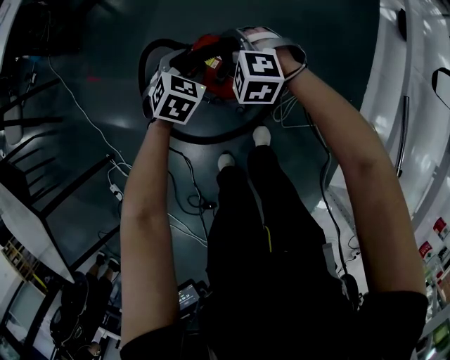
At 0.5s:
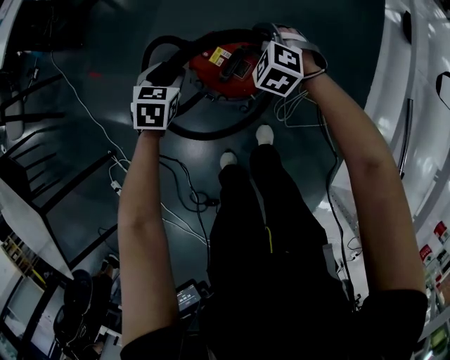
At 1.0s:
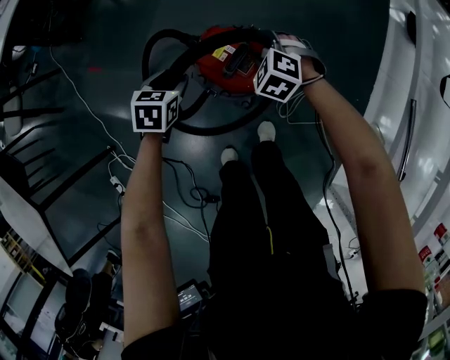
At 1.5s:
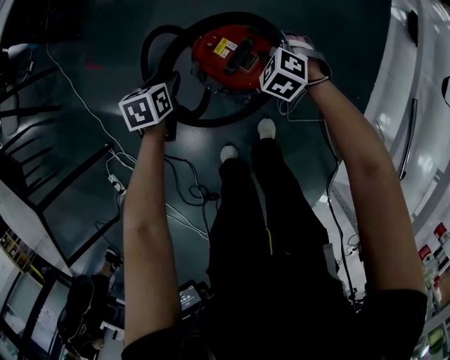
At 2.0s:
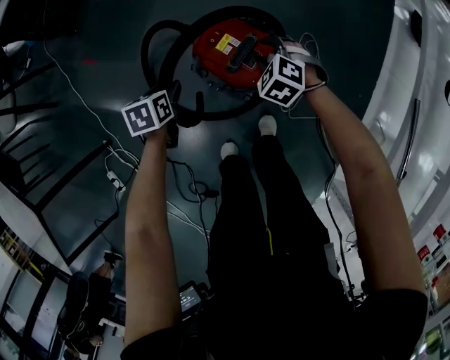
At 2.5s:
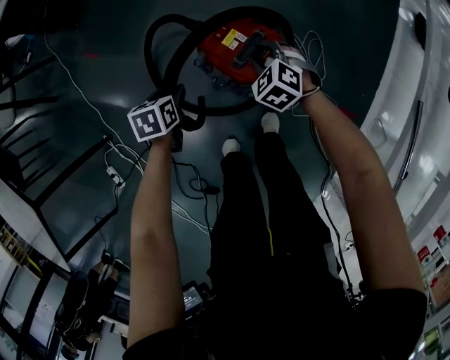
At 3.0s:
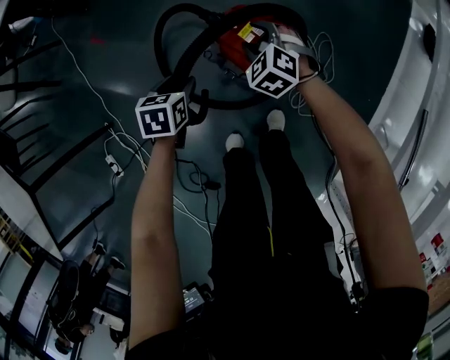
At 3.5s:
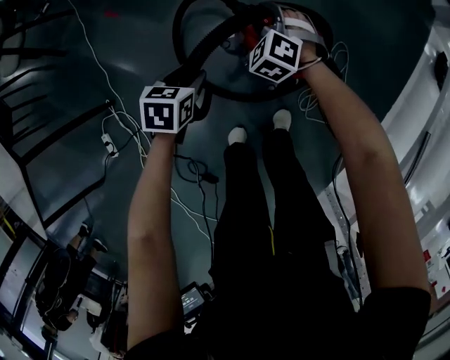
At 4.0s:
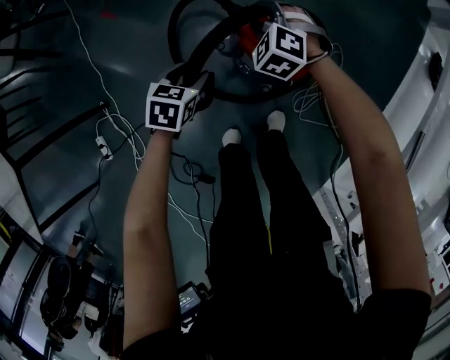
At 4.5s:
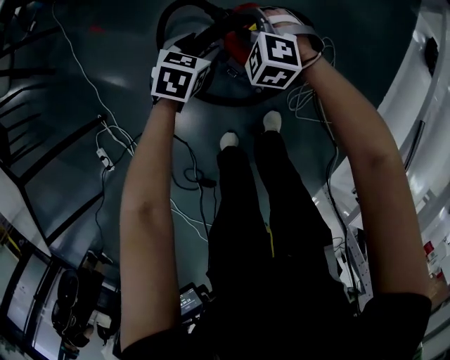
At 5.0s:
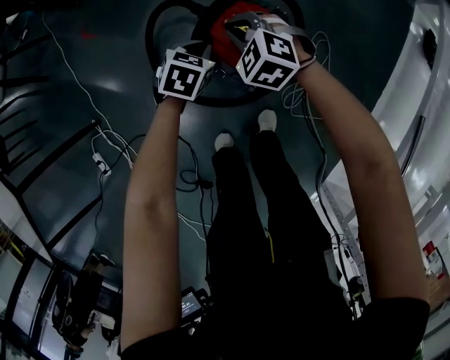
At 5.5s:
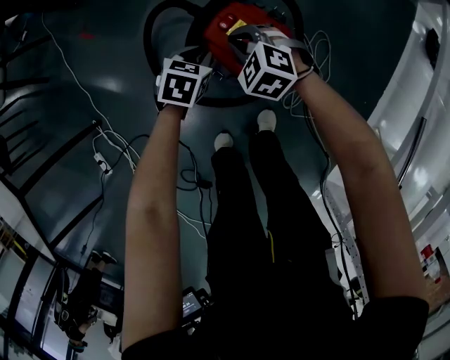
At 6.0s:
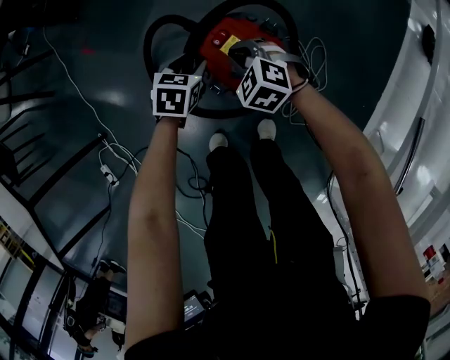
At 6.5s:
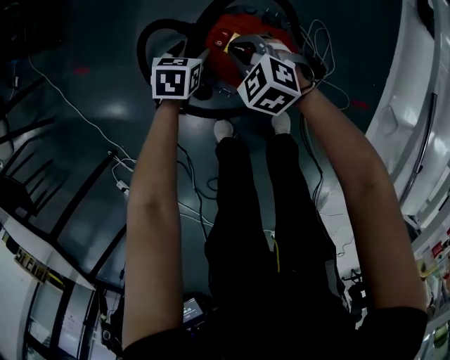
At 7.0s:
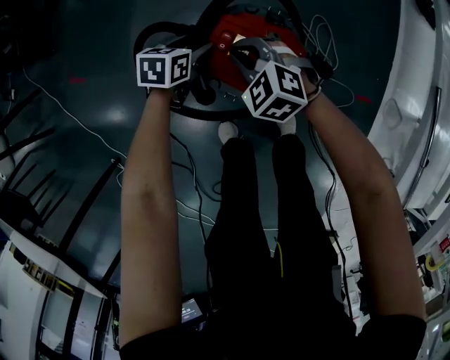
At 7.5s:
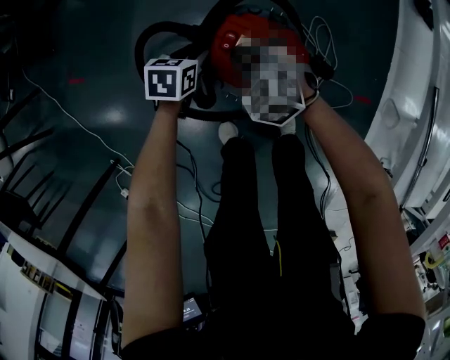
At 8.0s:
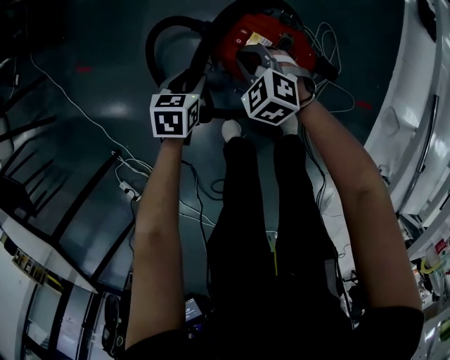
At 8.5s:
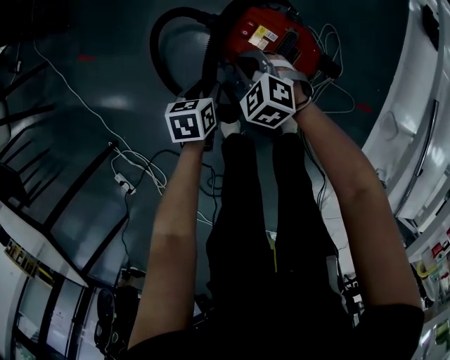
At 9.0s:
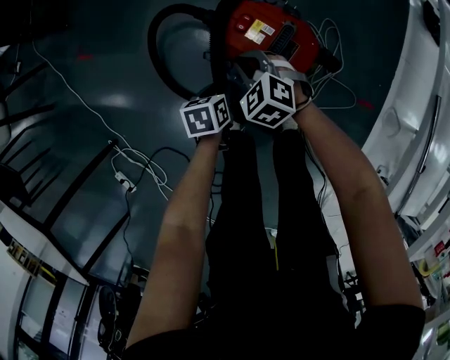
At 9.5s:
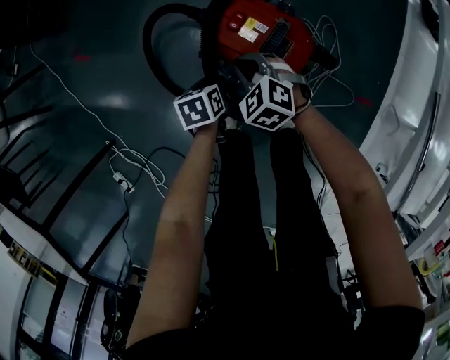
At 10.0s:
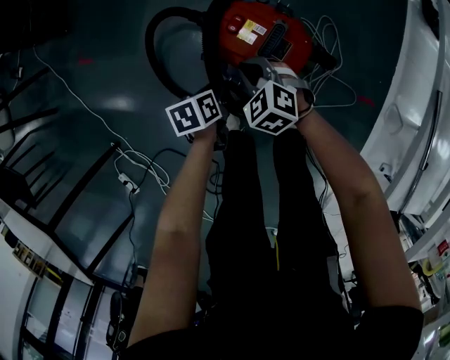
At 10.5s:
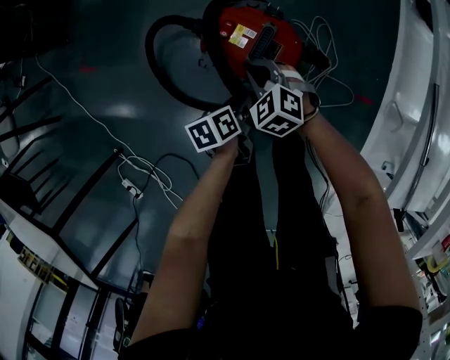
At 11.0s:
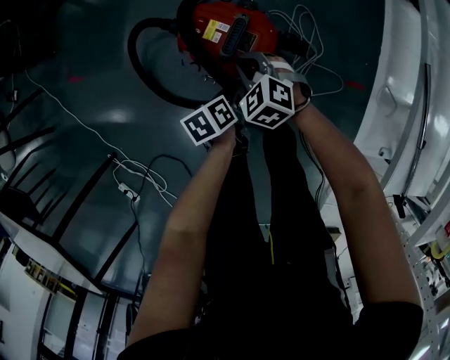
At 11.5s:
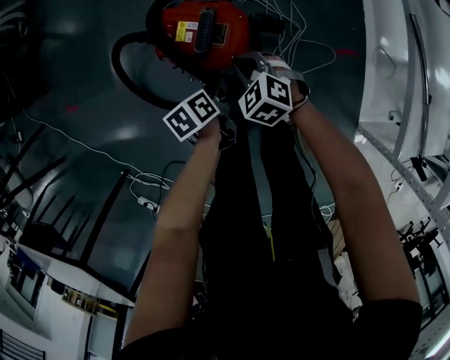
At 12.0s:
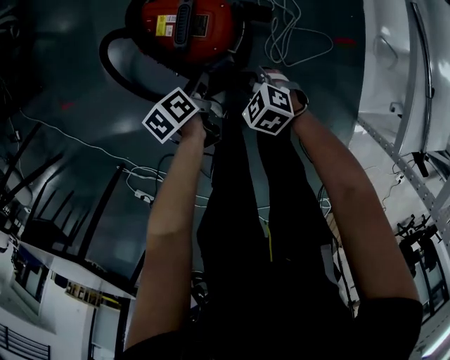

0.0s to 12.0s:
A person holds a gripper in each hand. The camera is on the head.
0.0s to 2.0s: The right gripper travels downward by approximately 10 cm; the left gripper shifts some 20 cm to the left and downward, and twists about 50 degrees counterclockwise, seen from behind.
2.0s to 4.0s: The right gripper goes approximately 15 cm to the left. The left gripper changes place by some 5 cm.
4.0s to 6.0s: The right gripper shifts approximately 5 cm to the right, and closes up, while the left gripper is displaced to the right and forward by approximately 15 cm, and closes, then reopens.
6.0s to 8.0s: Both grippers travel together to the left, about 5 cm. The left gripper goes forward and returns, about 10 cm each way.
8.0s to 10.0s: The left gripper moves backward and to the right, approximately 10 cm, and turns by roughly 30 degrees, while the right gripper goes some 5 cm backward.
10.0s to 12.0s: The left gripper heads to the right, covering about 10 cm. The right gripper goes approximately 20 cm to the right and backward, and changes its angle by roughly 20 degrees.

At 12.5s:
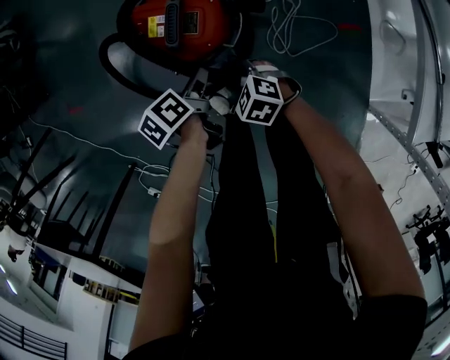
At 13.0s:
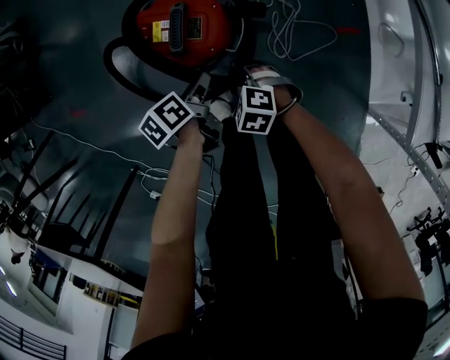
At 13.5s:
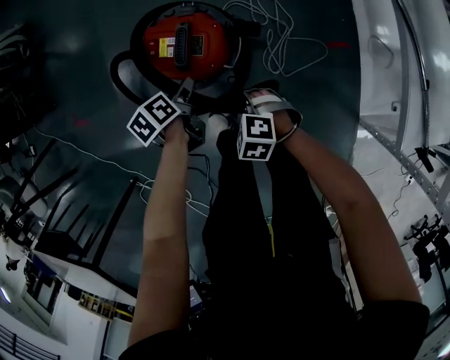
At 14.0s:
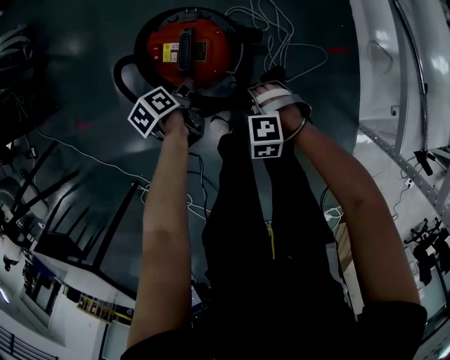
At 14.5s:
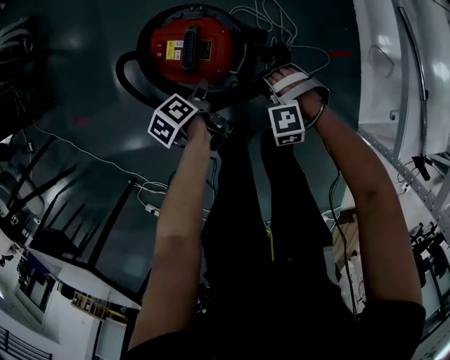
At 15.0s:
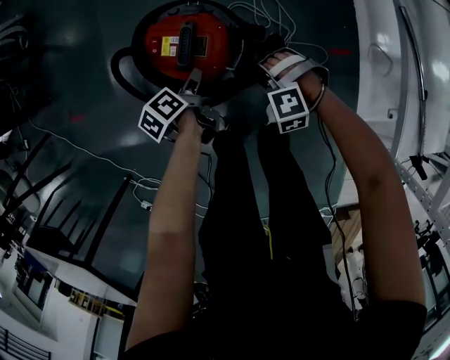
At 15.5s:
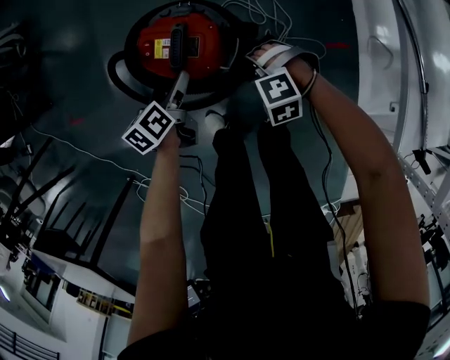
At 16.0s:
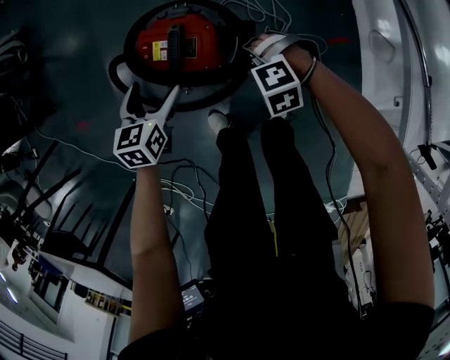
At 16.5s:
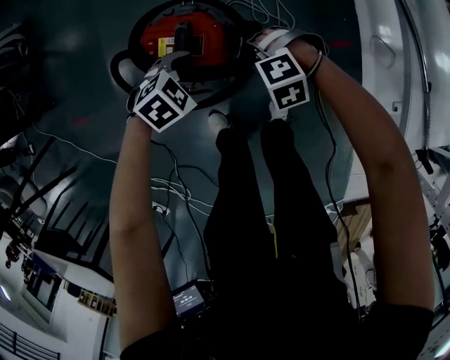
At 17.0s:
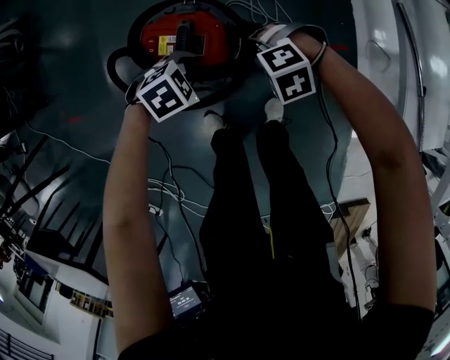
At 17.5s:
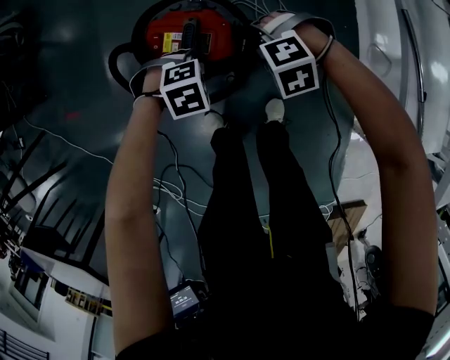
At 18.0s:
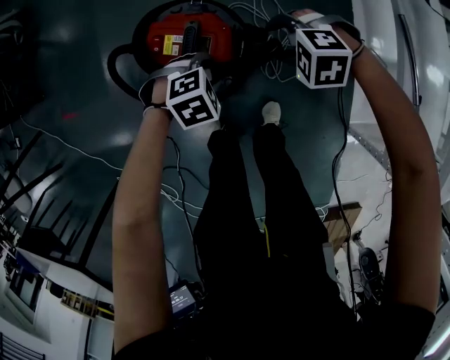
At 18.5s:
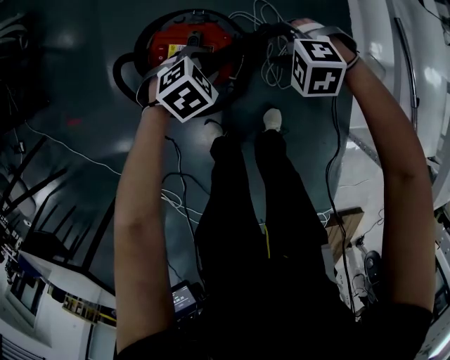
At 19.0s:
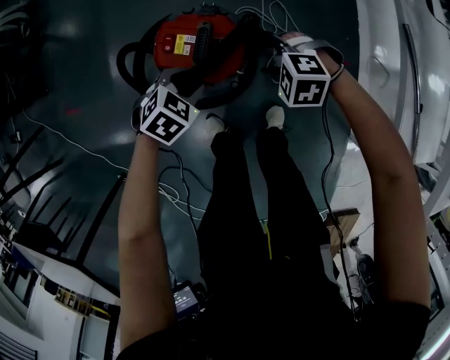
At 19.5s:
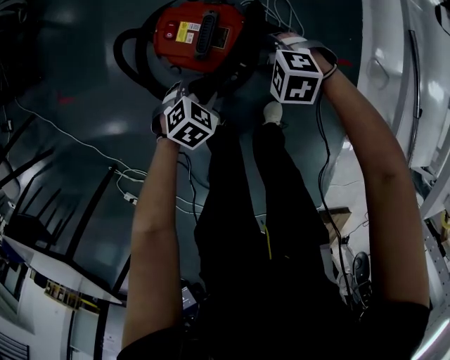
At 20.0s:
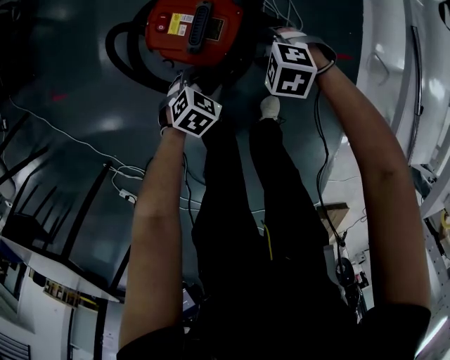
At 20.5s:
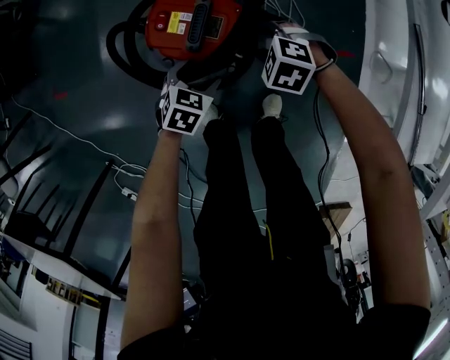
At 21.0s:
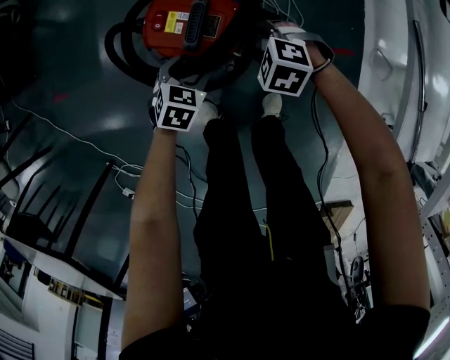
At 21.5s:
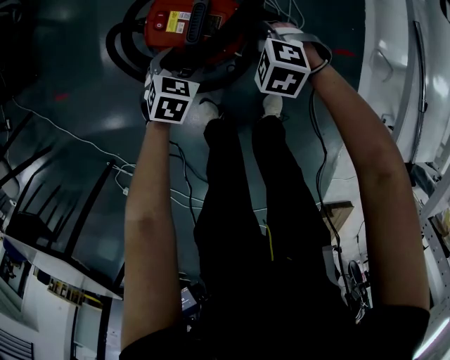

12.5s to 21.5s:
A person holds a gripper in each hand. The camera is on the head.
12.5s to 14.5s: The right gripper heads to the right and upward, covering about 10 cm, and twists about 40 degrees counterclockwise, seen from behind.
14.5s to 17.0s: The left gripper ends up roughly 5 cm from where it was, and twists roughly 110 degrees clockwise, seen from behind, while the right gripper ends up approximately 5 cm from where it was, and turns by approximately 20 degrees.
17.0s to 19.5s: The left gripper shifts by about 5 cm, swivels about 30 degrees, and closes.
19.5s to 21.5s: The left gripper changes place by some 5 cm, turns by about 20 degrees, and opens its fingers.

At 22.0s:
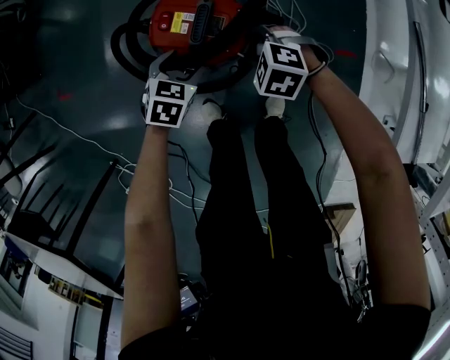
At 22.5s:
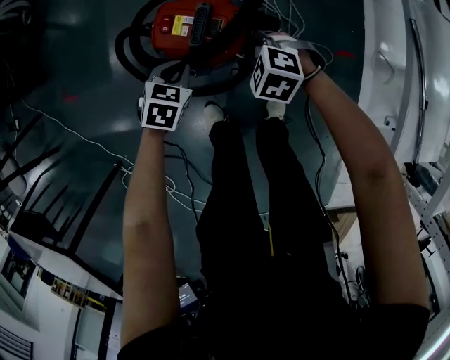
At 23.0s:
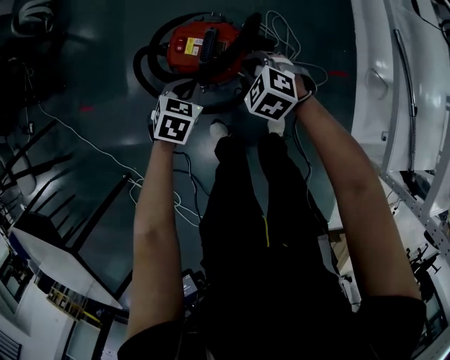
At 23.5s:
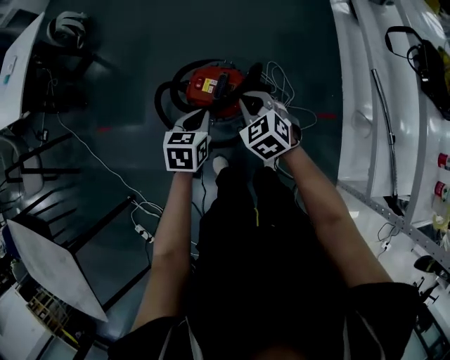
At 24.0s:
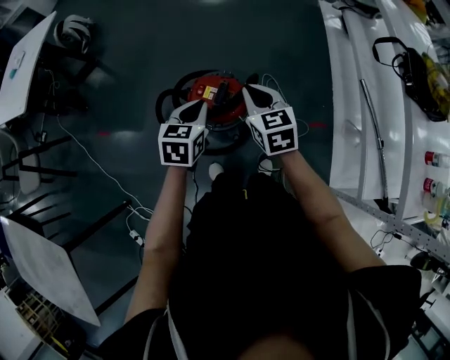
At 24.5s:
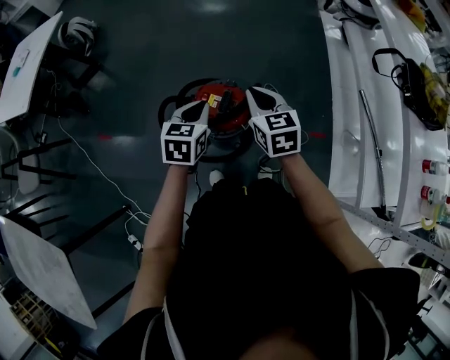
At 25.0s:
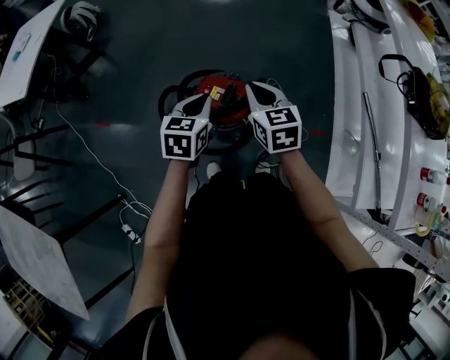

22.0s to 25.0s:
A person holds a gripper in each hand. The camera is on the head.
22.0s to 23.5s: Both grippers move upward, some 25 cm. The left gripper rotates about 20 degrees, and closes; the right gripper changes its angle by approximately 40 degrees, and closes its fingers.
23.5s to 25.0s: The grippers both shift upward by some 10 cm. The right gripper turns by about 30 degrees.

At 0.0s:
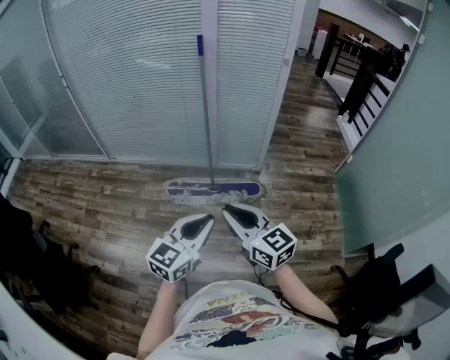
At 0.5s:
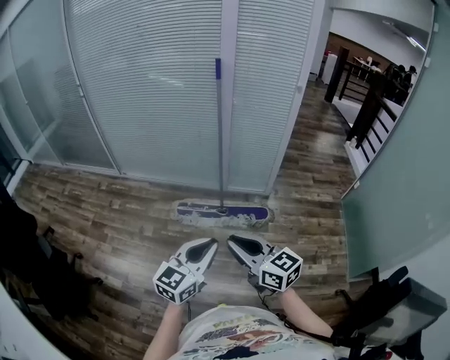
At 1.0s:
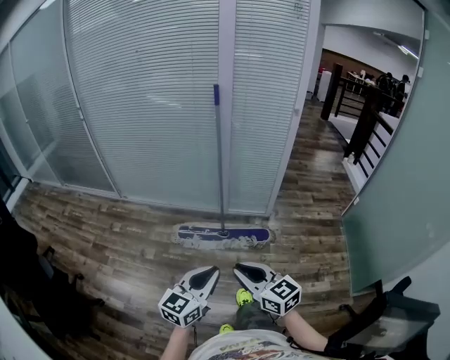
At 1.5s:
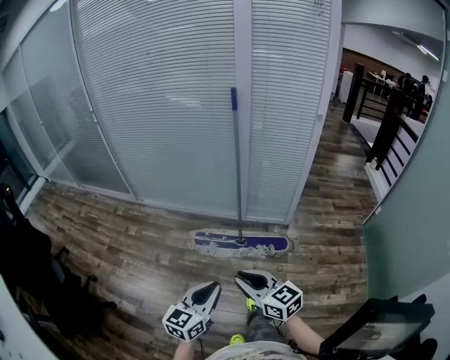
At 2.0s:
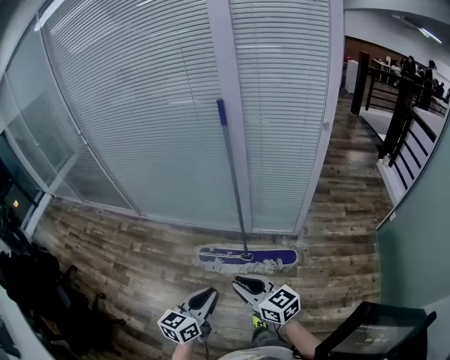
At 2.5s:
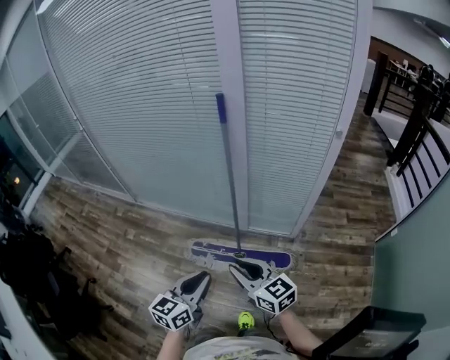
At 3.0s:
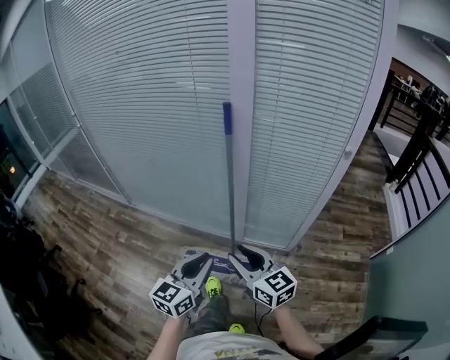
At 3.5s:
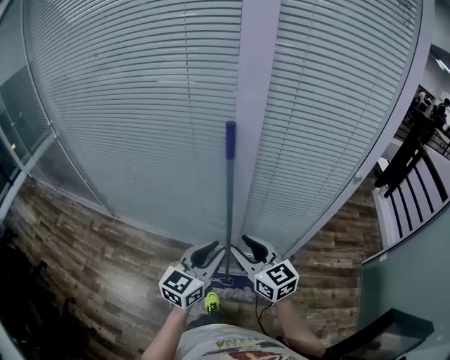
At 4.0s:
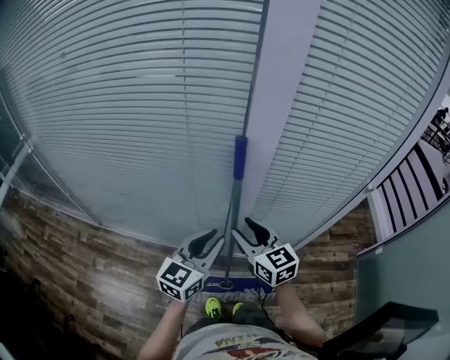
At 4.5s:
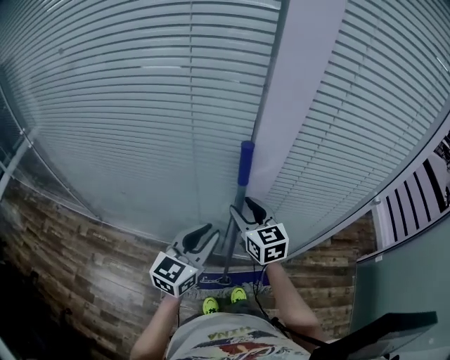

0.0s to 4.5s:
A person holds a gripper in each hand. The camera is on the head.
0.0s to 2.0s: The grippers both shift forward by approximately 25 cm. The left gripper turns by roughly 20 degrees.
2.0s to 4.5s: Both grippers are carried forward, approximately 60 cm. The right gripper swivels roughly 30 degrees, and opens up.
